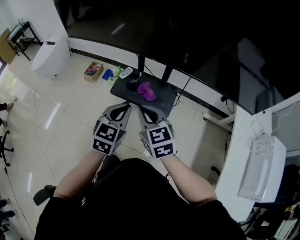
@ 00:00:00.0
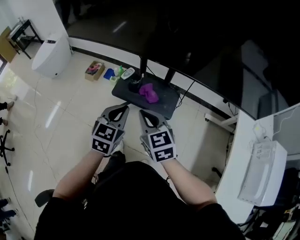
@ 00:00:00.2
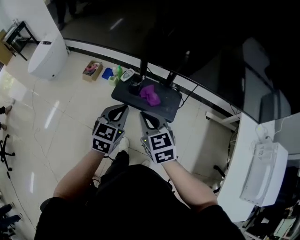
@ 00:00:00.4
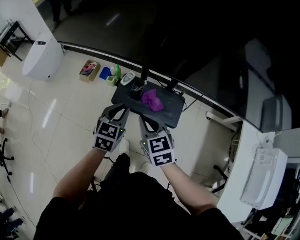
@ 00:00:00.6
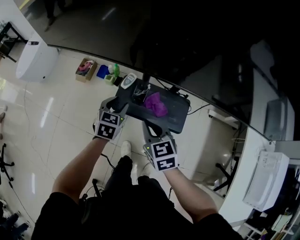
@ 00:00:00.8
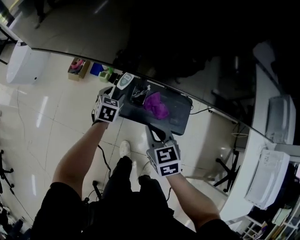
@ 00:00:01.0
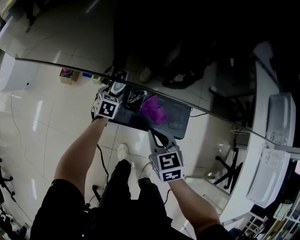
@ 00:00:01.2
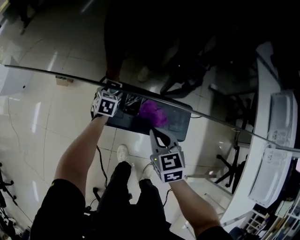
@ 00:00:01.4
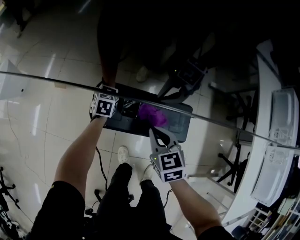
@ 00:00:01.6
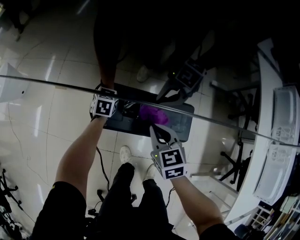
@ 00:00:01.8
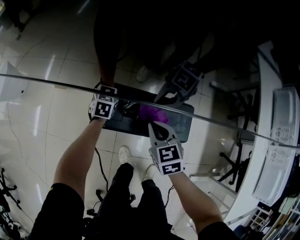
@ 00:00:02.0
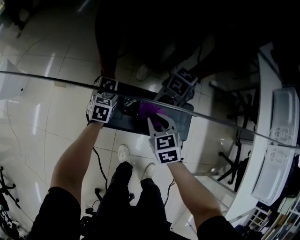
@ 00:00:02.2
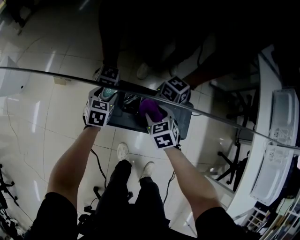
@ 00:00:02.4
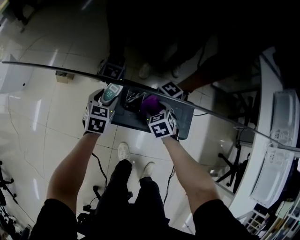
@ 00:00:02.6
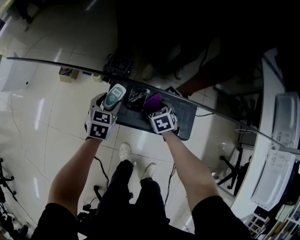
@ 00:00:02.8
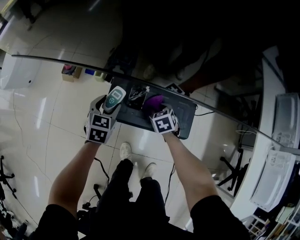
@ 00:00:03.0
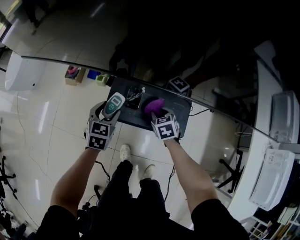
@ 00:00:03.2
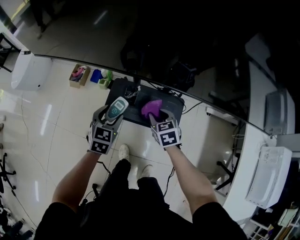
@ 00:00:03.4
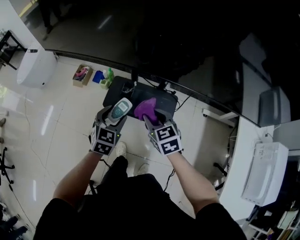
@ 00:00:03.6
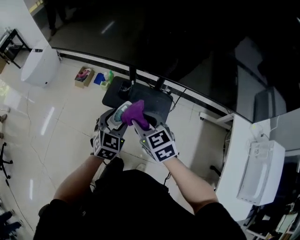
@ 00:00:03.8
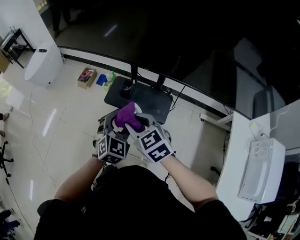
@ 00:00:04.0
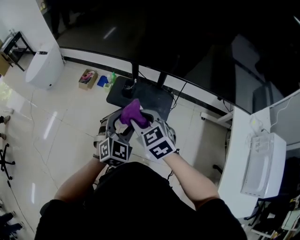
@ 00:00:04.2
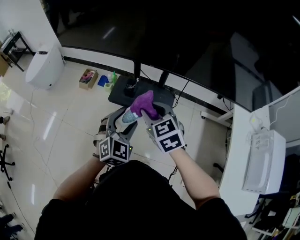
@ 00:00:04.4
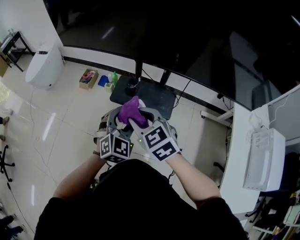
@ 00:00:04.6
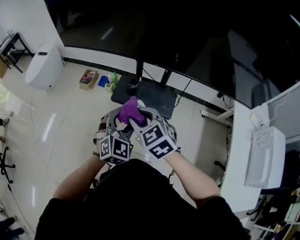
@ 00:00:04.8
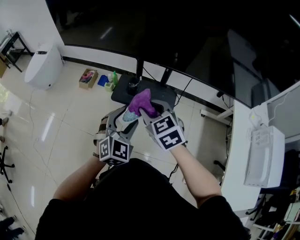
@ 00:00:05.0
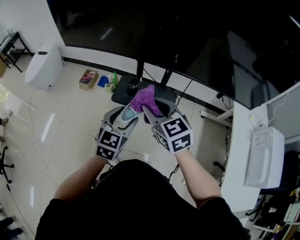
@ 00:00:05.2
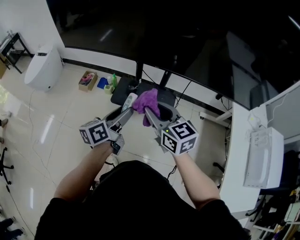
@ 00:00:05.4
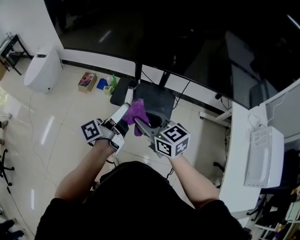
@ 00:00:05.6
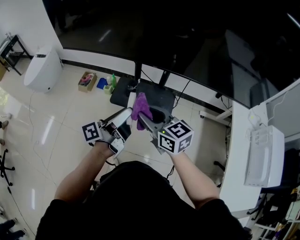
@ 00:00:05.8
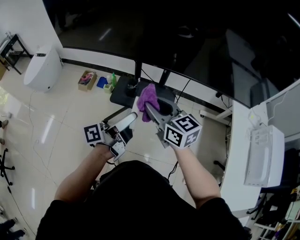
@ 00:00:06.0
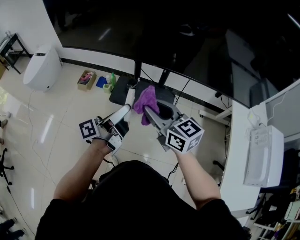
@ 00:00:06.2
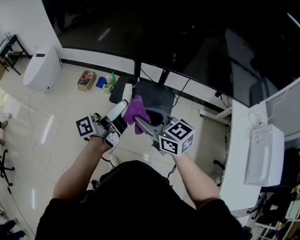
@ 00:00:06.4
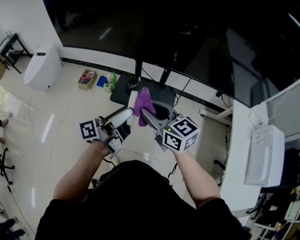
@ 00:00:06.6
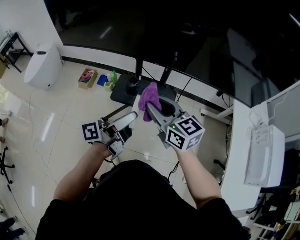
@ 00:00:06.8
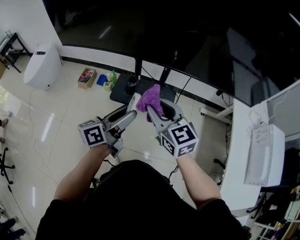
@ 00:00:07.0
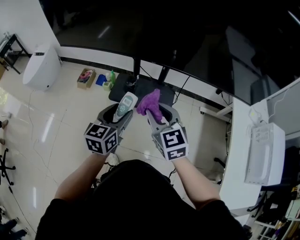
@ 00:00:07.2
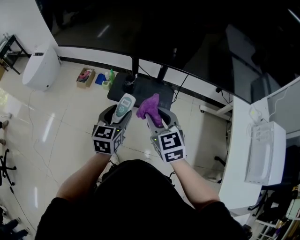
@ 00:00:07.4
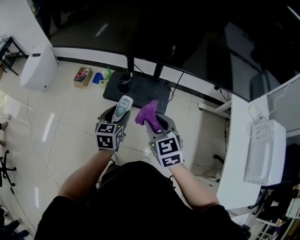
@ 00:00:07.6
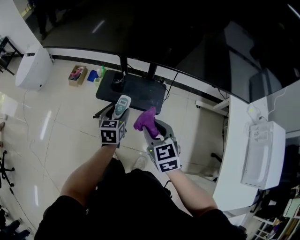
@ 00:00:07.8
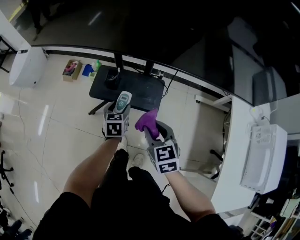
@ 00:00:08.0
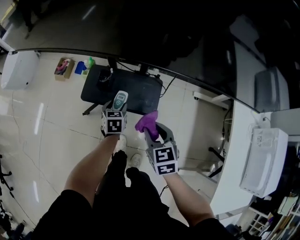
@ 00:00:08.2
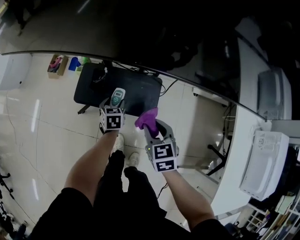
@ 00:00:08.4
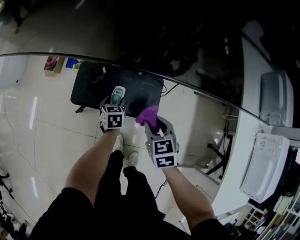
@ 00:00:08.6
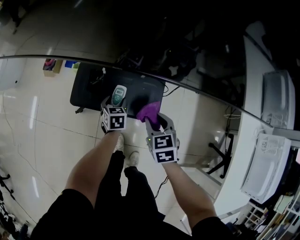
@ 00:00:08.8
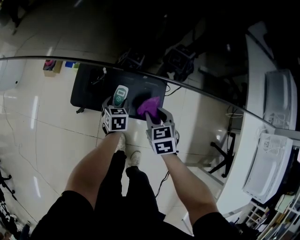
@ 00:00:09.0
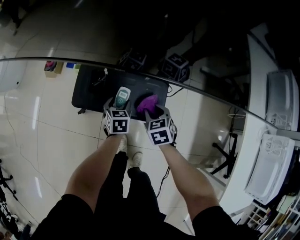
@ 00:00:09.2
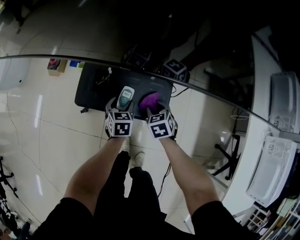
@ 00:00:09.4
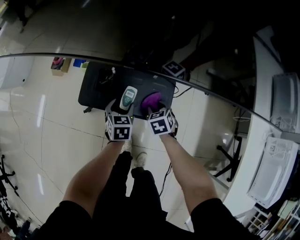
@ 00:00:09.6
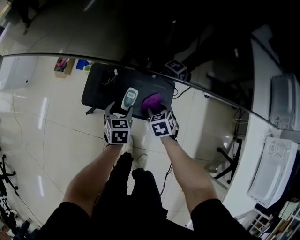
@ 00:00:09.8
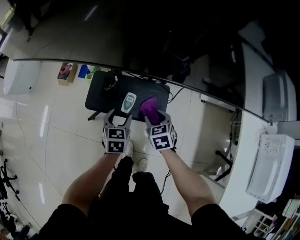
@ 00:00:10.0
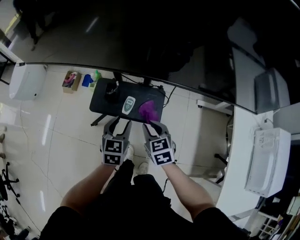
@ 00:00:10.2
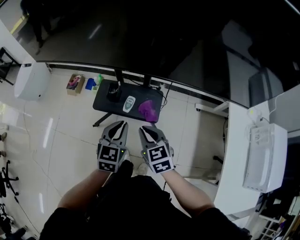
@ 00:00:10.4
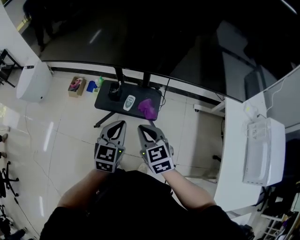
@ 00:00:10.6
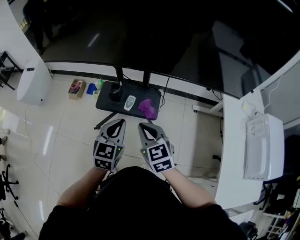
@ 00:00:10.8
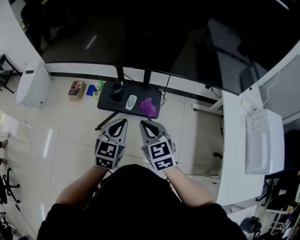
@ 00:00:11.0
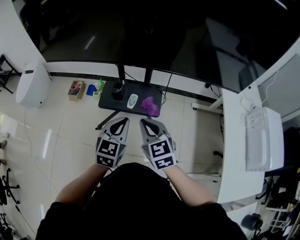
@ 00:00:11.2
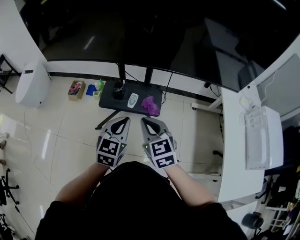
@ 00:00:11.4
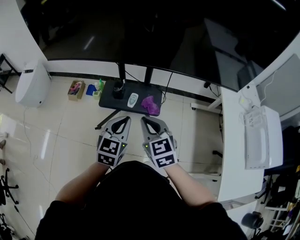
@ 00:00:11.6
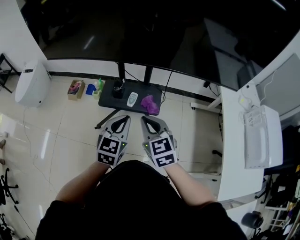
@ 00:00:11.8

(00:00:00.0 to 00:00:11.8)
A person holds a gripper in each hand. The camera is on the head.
00:00:00.0 - 00:00:01.4: The left gripper heads forward and downward, covering roughly 60 cm, rotates about 30 degrees, and opens up. Meanwhile the right gripper heads downward and forward, covering some 35 cm, and rotates roughly 30 degrees.
00:00:01.4 - 00:00:03.0: The left gripper travels upward and backward by approximately 15 cm, while the right gripper shifts approximately 20 cm downward and forward, and opens.
00:00:03.0 - 00:00:04.4: The left gripper goes roughly 40 cm backward and upward, and changes its angle by about 30 degrees. Meanwhile the right gripper goes roughly 50 cm upward and backward, and swivels about 30 degrees.
00:00:04.4 - 00:00:06.0: The right gripper reaches roughly 10 cm to the left, then returns, and swivels about 30 degrees; the left gripper shifts roughly 5 cm upward, and rotates around the line of its fingers by roughly 100 degrees, counterclockwise from behind.
00:00:06.0 - 00:00:07.4: The grippers both shift downward by roughly 5 cm. The left gripper points its fingers approximately 40 degrees further downward; the right gripper rotates about 20 degrees.
00:00:07.4 - 00:00:08.8: The right gripper travels downward, forward and to the right by approximately 35 cm, and rotates some 30 degrees. The left gripper heads downward and forward, covering roughly 40 cm, and turns by some 30 degrees.
00:00:08.8 - 00:00:10.4: The right gripper moves upward and backward, roughly 25 cm. The left gripper goes approximately 40 cm upward and backward, turns by about 30 degrees, and closes.
00:00:10.4 - 00:00:11.8: The left gripper is displaced backward and upward by roughly 10 cm; the right gripper goes approximately 10 cm upward and backward.

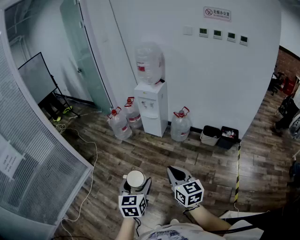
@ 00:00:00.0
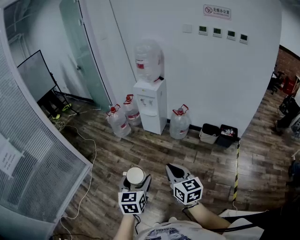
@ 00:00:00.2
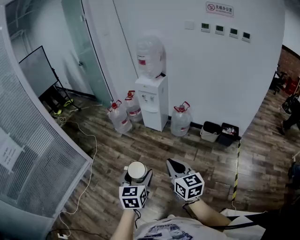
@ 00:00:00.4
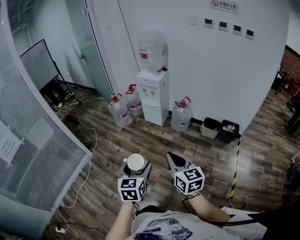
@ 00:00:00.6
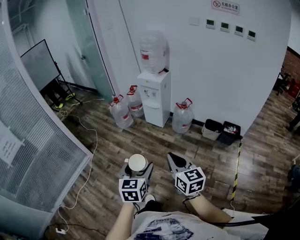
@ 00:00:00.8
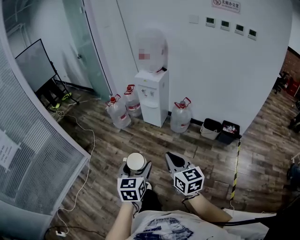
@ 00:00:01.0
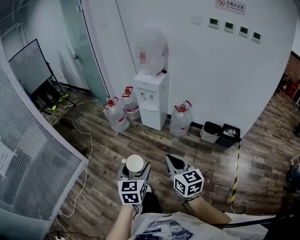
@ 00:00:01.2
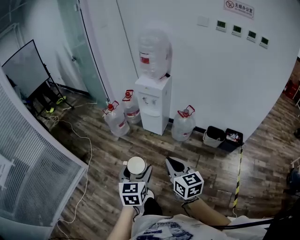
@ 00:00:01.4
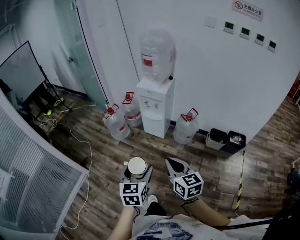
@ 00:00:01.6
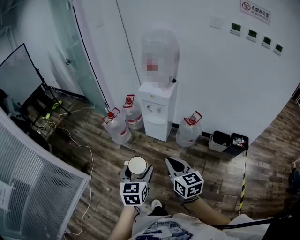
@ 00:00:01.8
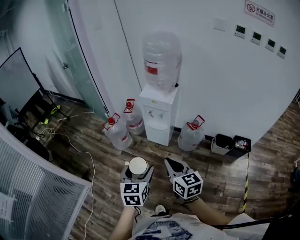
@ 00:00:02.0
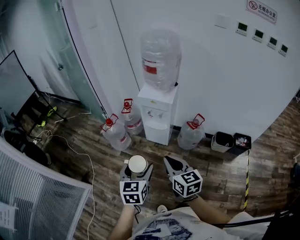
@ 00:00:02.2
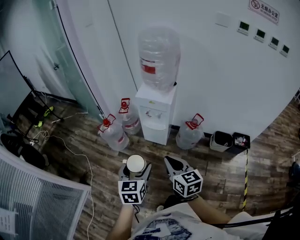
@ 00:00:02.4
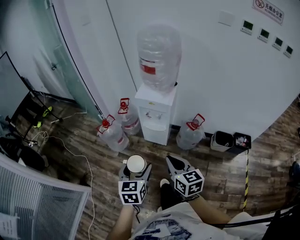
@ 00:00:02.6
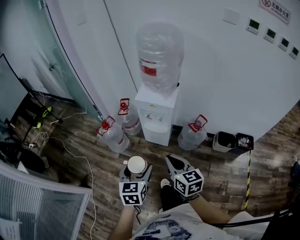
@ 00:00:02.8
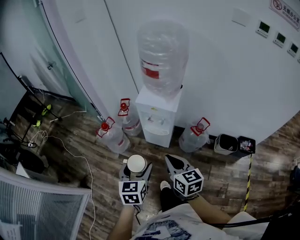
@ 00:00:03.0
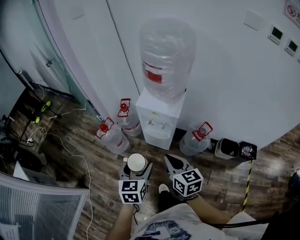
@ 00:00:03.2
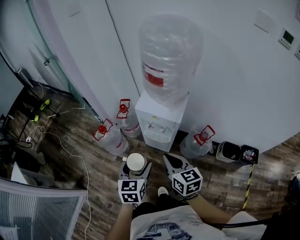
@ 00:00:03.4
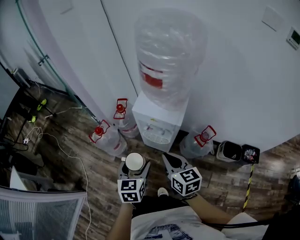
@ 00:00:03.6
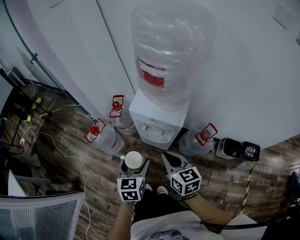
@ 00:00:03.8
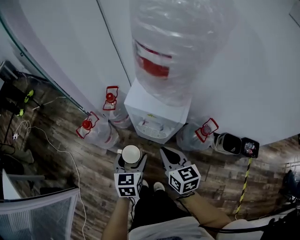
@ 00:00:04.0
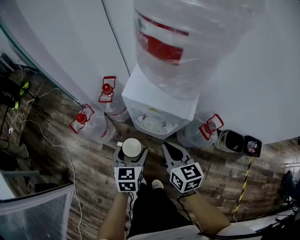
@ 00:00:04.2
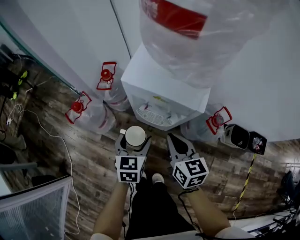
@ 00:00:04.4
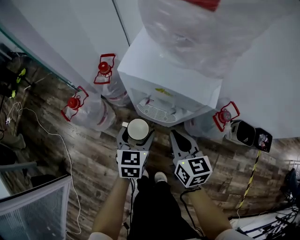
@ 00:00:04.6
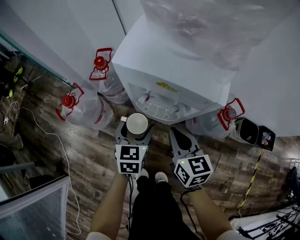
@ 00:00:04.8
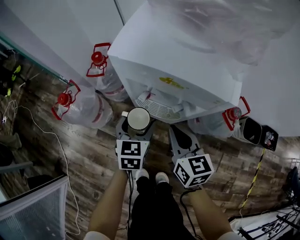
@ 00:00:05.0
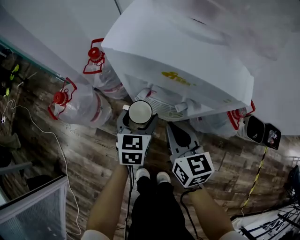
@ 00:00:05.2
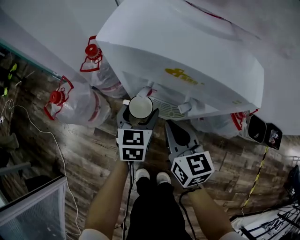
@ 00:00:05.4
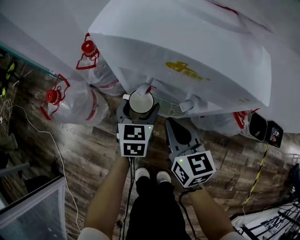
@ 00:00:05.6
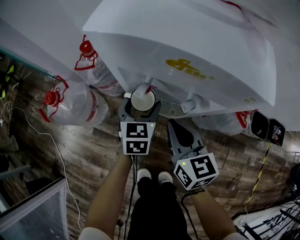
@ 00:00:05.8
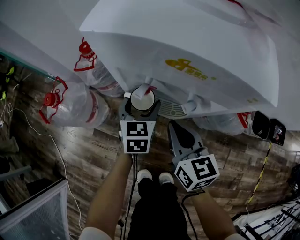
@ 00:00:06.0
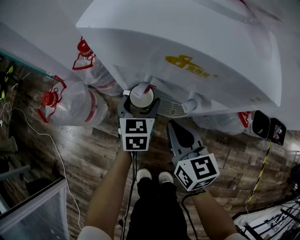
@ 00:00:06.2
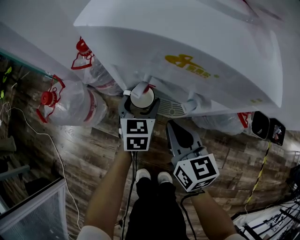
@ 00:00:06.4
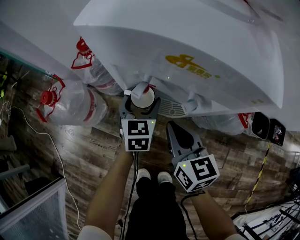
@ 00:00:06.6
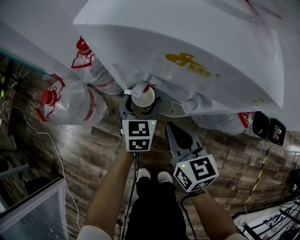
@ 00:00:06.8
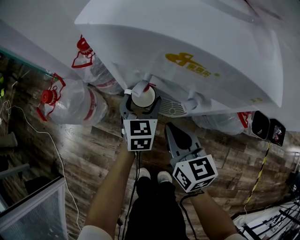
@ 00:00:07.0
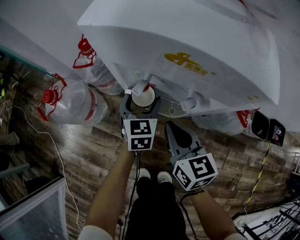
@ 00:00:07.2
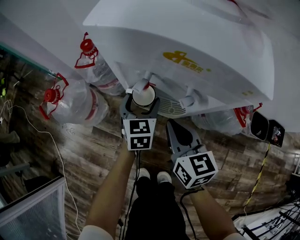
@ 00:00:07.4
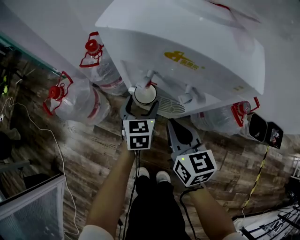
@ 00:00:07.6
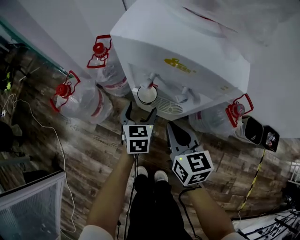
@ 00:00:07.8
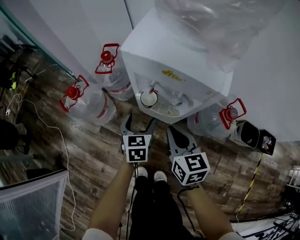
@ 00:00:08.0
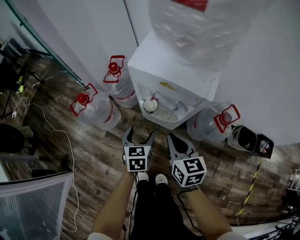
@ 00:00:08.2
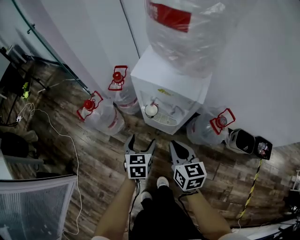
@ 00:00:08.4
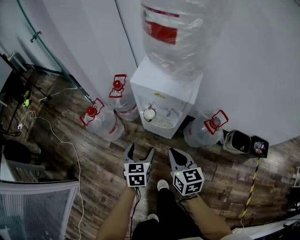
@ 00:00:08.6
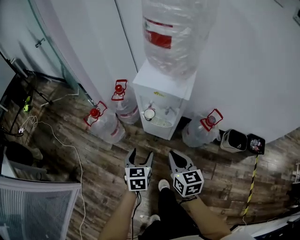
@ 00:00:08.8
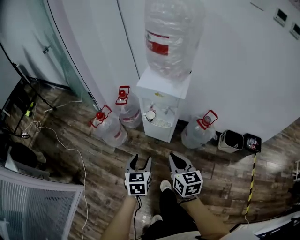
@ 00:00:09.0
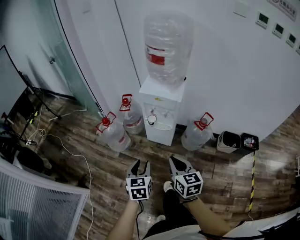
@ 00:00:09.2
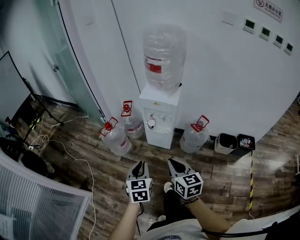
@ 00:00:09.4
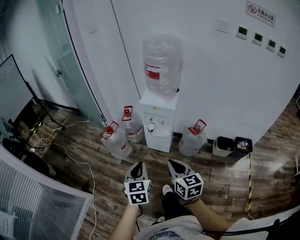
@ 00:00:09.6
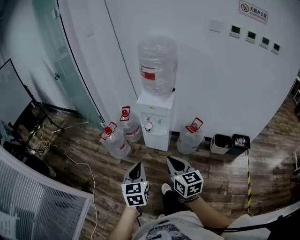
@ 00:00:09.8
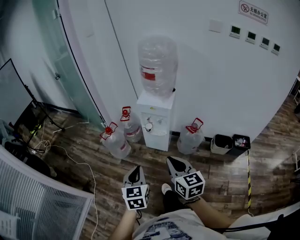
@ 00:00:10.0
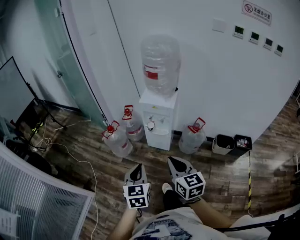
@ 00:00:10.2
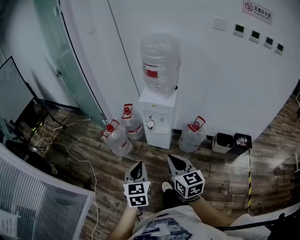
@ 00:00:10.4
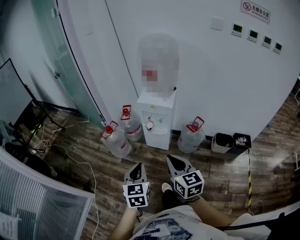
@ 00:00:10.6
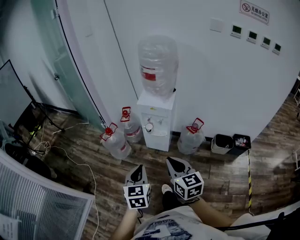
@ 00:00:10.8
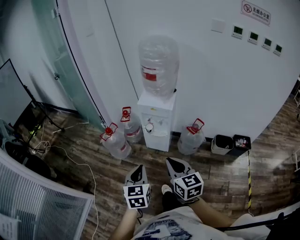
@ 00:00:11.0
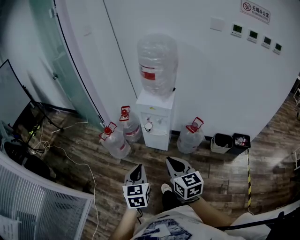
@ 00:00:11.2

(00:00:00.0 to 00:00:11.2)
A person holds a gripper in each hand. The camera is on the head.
00:00:00.0 - 00:00:01.6: The grippers both shift forward by approximately 30 cm.
00:00:01.6 - 00:00:03.2: Both grippers are carried forward, roughly 40 cm.
00:00:03.2 - 00:00:04.8: The two grippers go roughly 40 cm downward and forward.
00:00:04.8 - 00:00:06.4: The left gripper is displaced downward and forward by some 15 cm, while the right gripper goes approximately 10 cm downward.
00:00:06.4 - 00:00:08.0: The right gripper goes roughly 10 cm upward and backward, while the left gripper moves backward and upward, approximately 15 cm.
00:00:08.0 - 00:00:09.6: Both grippers are carried backward, some 40 cm. Both grippers move upward, some 40 cm. The left gripper closes.
00:00:09.6 - 00:00:11.2: The grippers move only a little.
